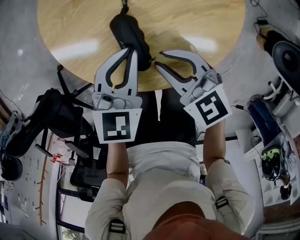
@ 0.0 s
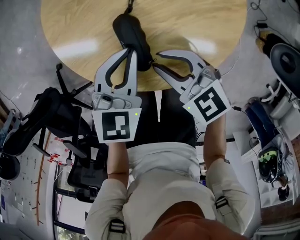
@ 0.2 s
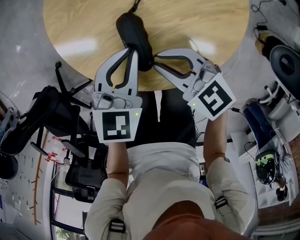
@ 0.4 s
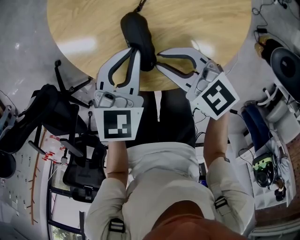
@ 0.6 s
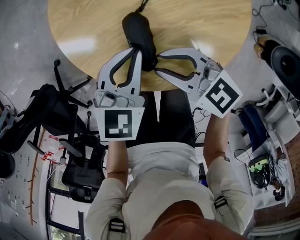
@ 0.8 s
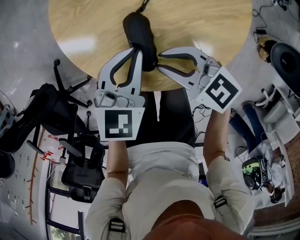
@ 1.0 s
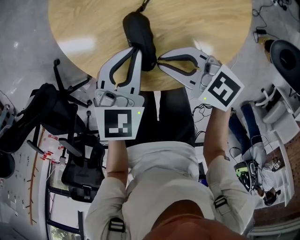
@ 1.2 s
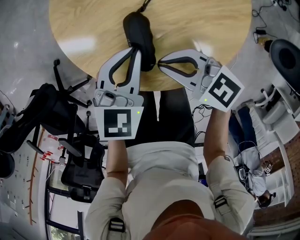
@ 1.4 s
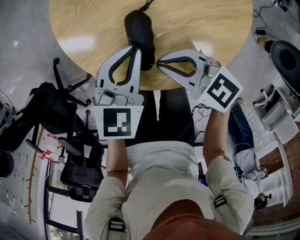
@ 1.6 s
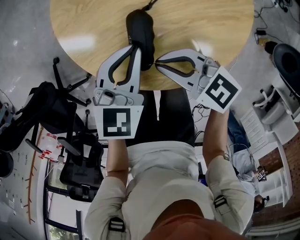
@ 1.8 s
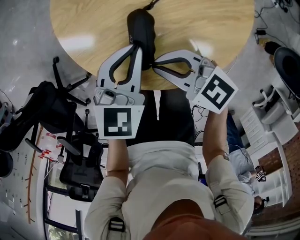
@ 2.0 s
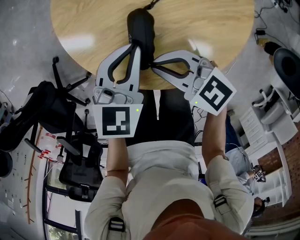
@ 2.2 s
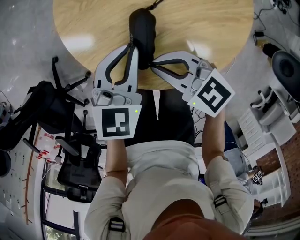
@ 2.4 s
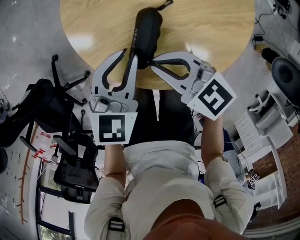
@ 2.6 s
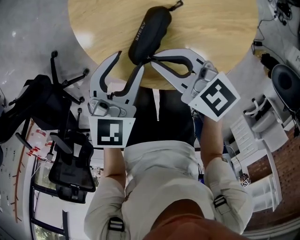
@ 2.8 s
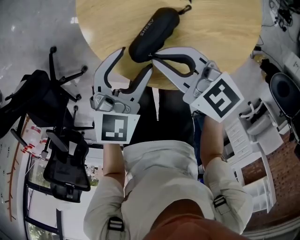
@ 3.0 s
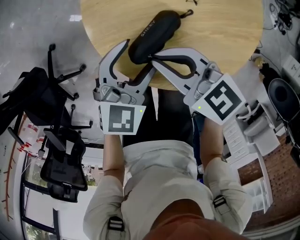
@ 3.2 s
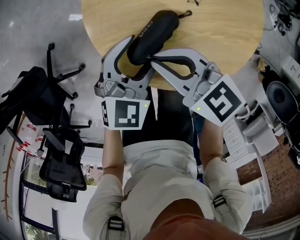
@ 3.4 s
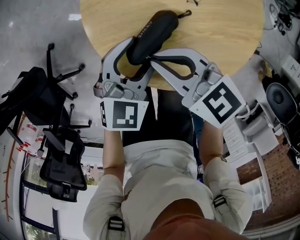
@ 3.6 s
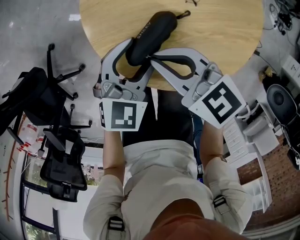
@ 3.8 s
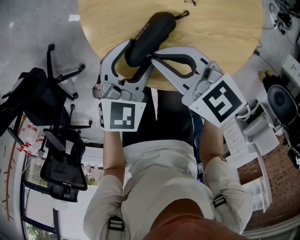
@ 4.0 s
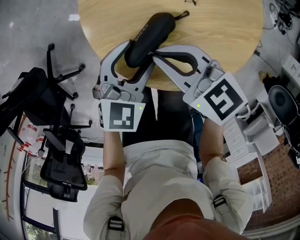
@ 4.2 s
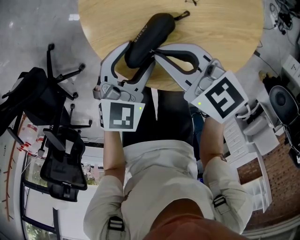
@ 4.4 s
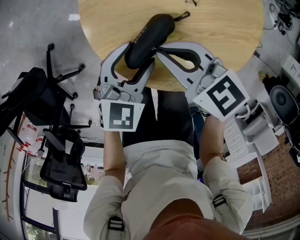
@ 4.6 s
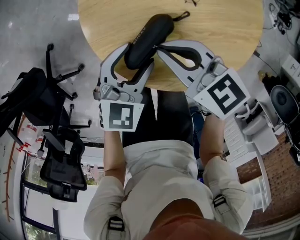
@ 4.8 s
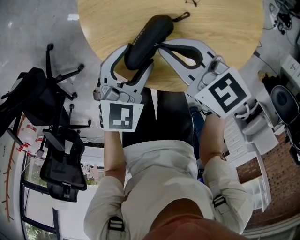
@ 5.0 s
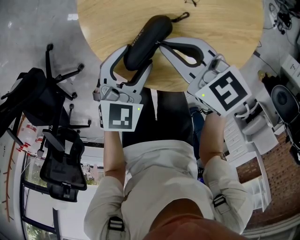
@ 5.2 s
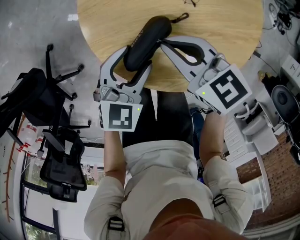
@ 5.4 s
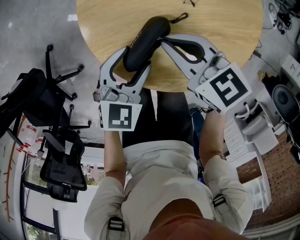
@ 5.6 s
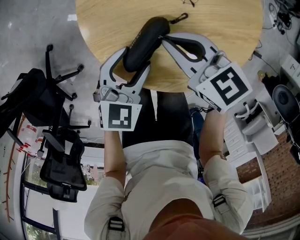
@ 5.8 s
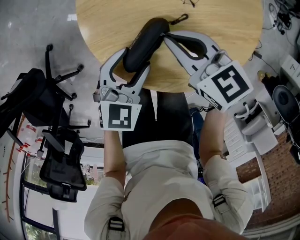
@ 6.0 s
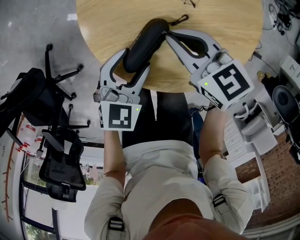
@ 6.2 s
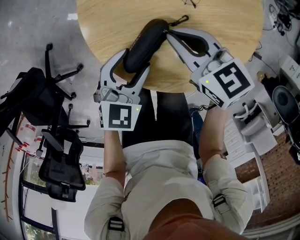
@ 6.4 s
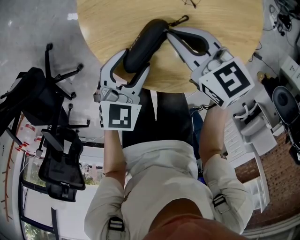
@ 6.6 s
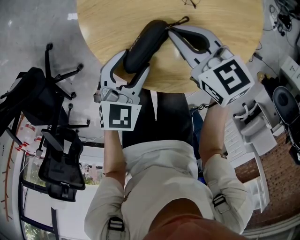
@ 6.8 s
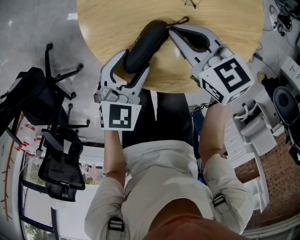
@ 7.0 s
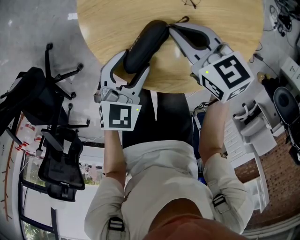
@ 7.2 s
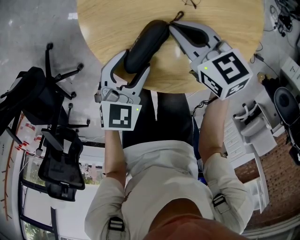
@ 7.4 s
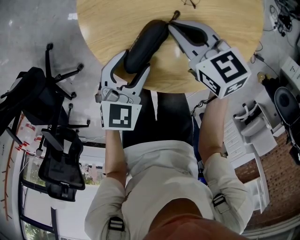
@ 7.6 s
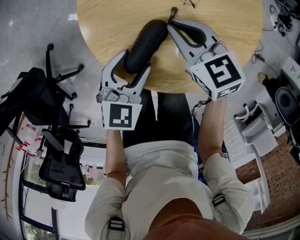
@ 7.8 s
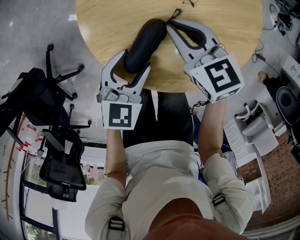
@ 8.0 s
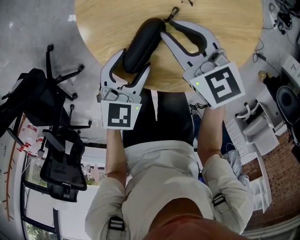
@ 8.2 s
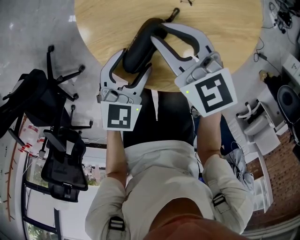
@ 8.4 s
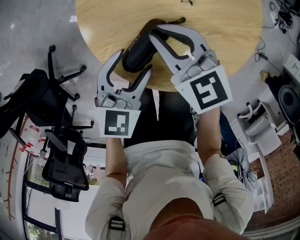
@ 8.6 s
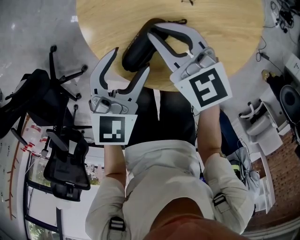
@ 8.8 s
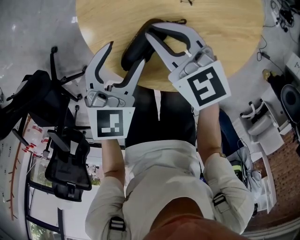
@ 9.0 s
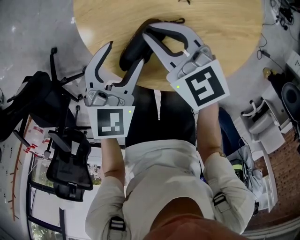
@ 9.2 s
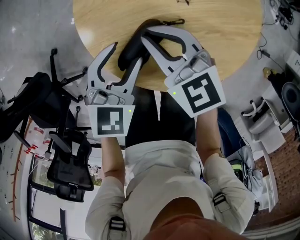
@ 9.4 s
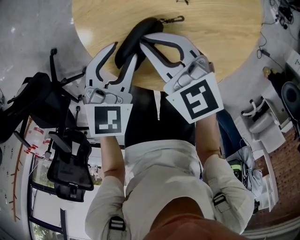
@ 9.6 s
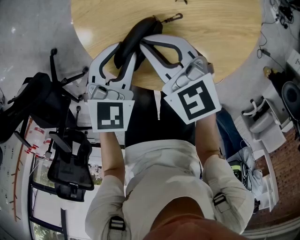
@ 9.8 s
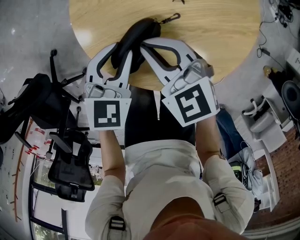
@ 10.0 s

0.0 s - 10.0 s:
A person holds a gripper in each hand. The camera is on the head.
0.0 s - 1.4 s: The right gripper turns by roughly 20 degrees.
1.4 s - 2.8 s: The left gripper is displaced to the left by approximately 5 cm, and opens up. Meanwhile the right gripper changes place by some 5 cm.
2.8 s - 4.2 s: The grippers move only a little.
4.2 s - 5.8 s: The right gripper moves some 5 cm.
5.8 s - 8.6 s: The grippers make only small movements.
8.6 s - 10.0 s: The left gripper closes.

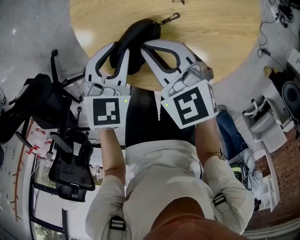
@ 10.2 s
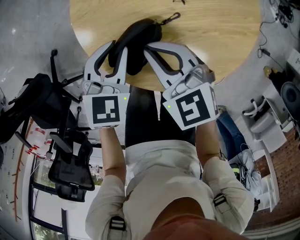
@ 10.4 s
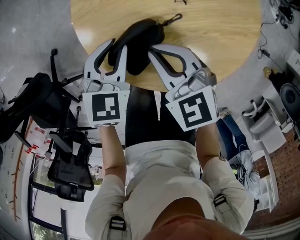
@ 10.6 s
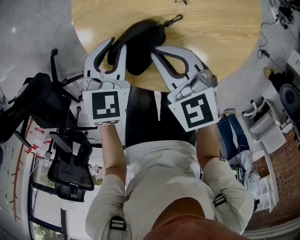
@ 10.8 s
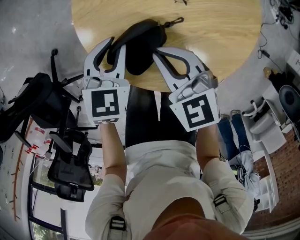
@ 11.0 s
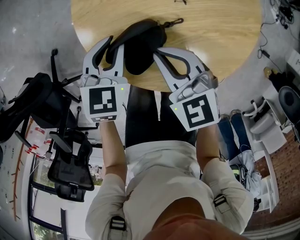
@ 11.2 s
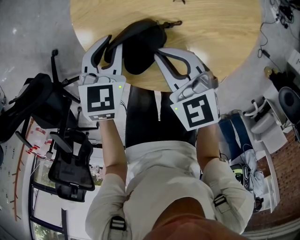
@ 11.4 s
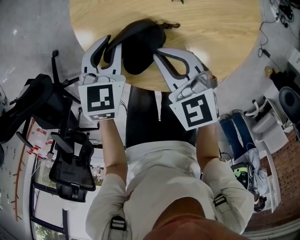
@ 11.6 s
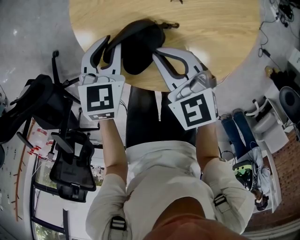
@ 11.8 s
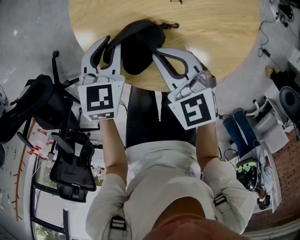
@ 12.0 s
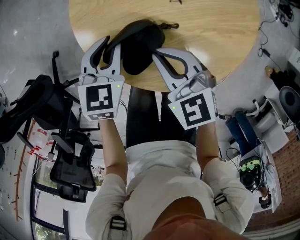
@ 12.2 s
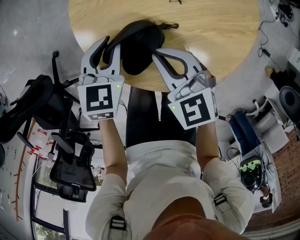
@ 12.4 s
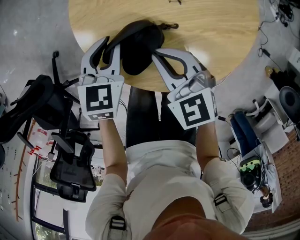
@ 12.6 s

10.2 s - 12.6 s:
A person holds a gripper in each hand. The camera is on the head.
10.2 s - 11.4 s: The grippers stay close to where they were, moving slightly.
11.4 s - 12.6 s: Both grippers stay about where they are.

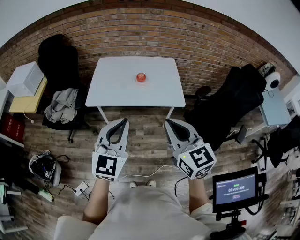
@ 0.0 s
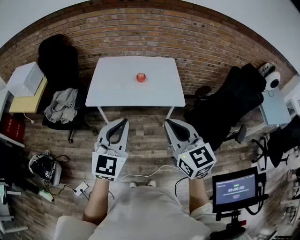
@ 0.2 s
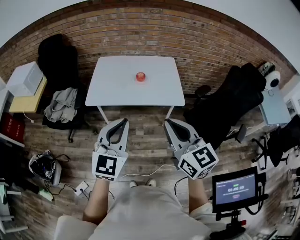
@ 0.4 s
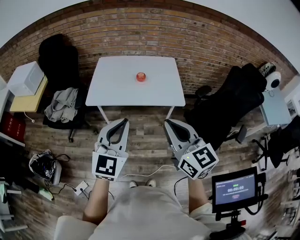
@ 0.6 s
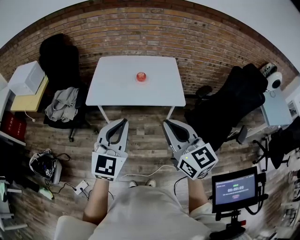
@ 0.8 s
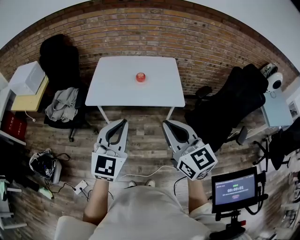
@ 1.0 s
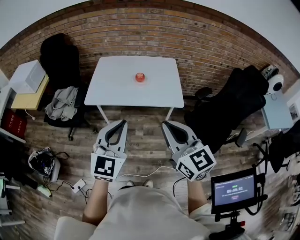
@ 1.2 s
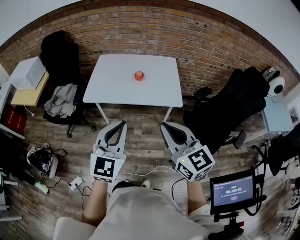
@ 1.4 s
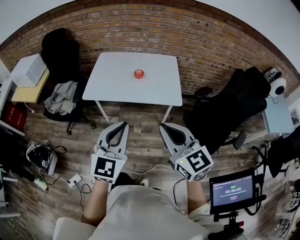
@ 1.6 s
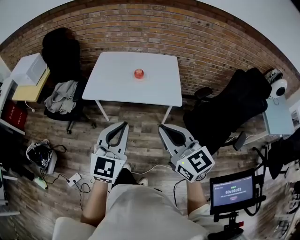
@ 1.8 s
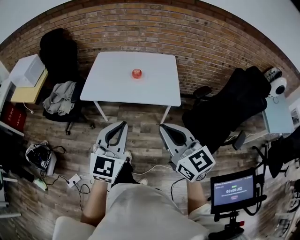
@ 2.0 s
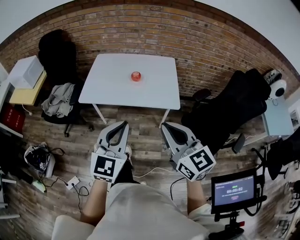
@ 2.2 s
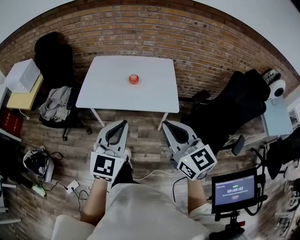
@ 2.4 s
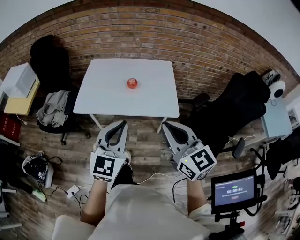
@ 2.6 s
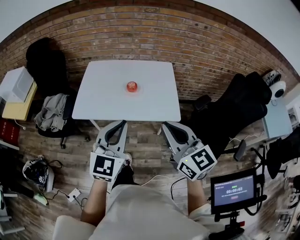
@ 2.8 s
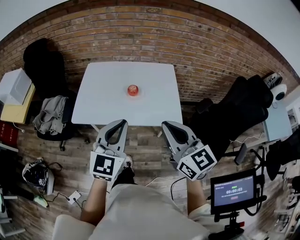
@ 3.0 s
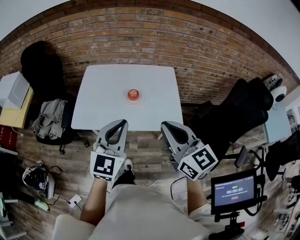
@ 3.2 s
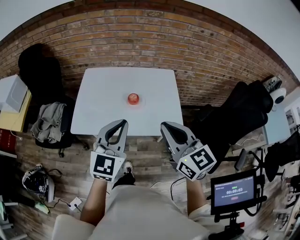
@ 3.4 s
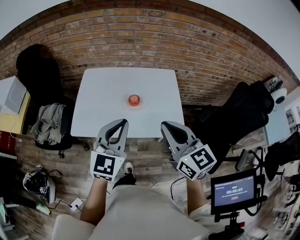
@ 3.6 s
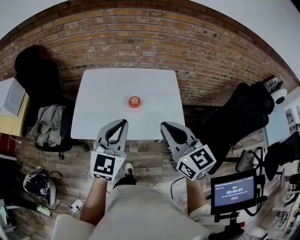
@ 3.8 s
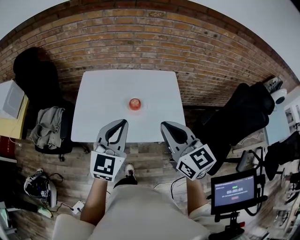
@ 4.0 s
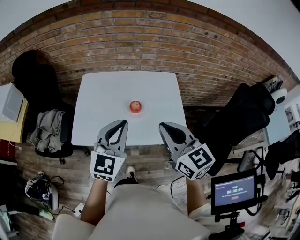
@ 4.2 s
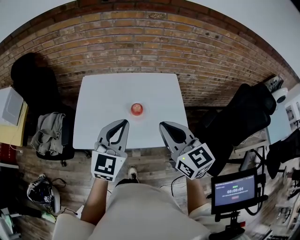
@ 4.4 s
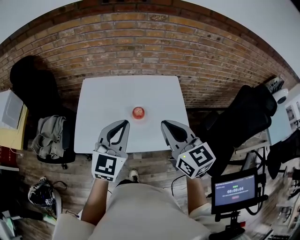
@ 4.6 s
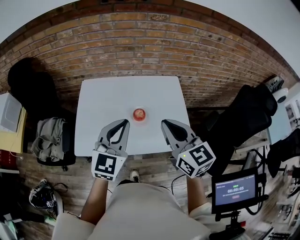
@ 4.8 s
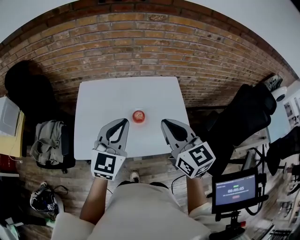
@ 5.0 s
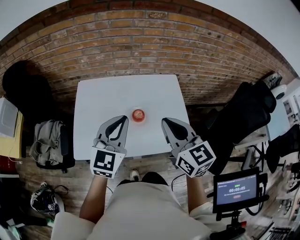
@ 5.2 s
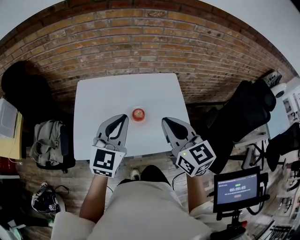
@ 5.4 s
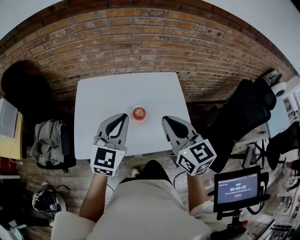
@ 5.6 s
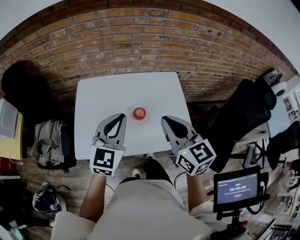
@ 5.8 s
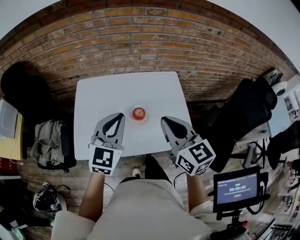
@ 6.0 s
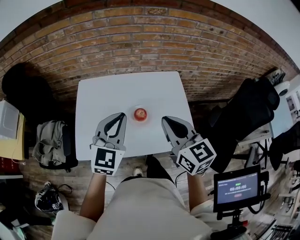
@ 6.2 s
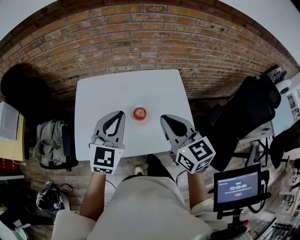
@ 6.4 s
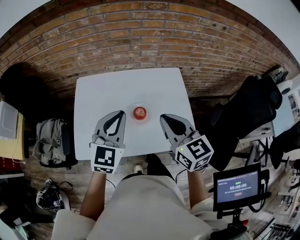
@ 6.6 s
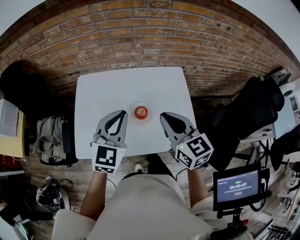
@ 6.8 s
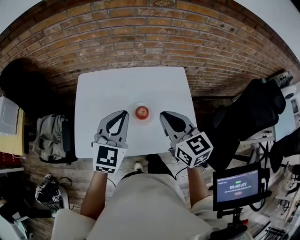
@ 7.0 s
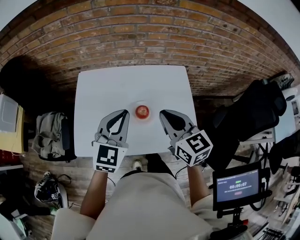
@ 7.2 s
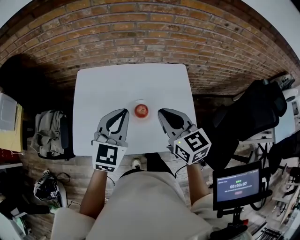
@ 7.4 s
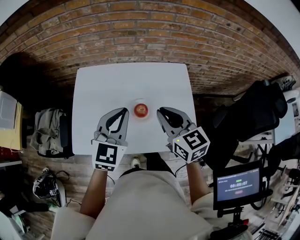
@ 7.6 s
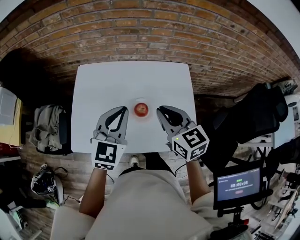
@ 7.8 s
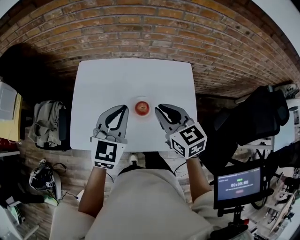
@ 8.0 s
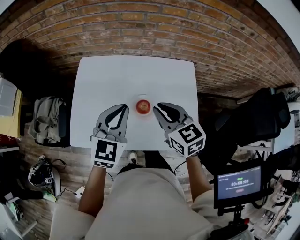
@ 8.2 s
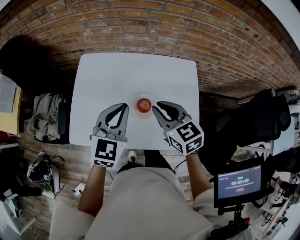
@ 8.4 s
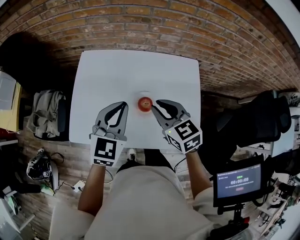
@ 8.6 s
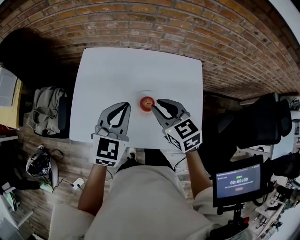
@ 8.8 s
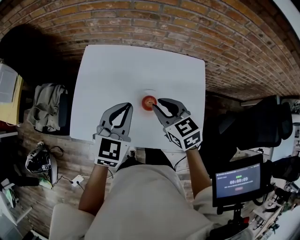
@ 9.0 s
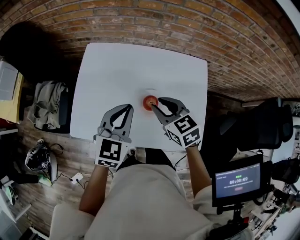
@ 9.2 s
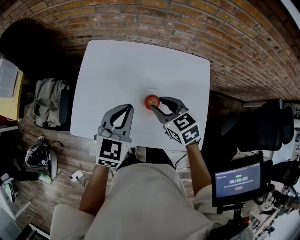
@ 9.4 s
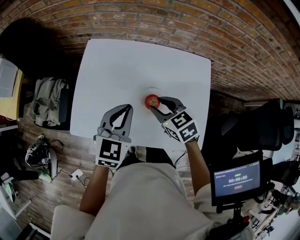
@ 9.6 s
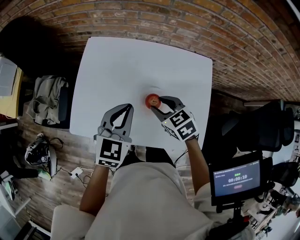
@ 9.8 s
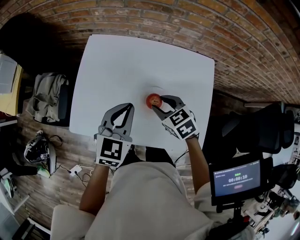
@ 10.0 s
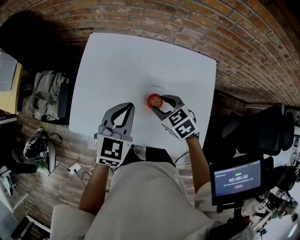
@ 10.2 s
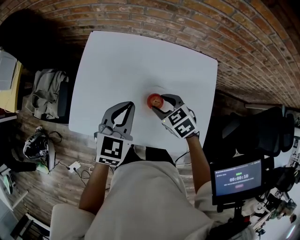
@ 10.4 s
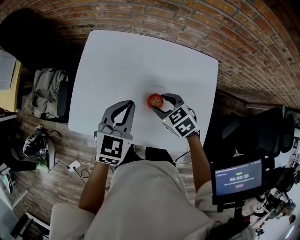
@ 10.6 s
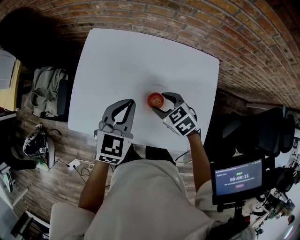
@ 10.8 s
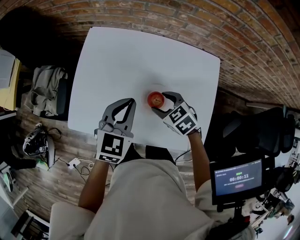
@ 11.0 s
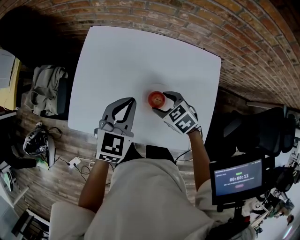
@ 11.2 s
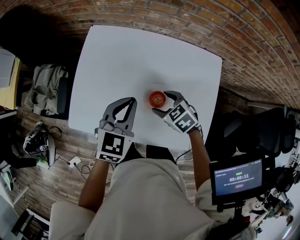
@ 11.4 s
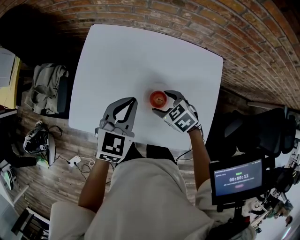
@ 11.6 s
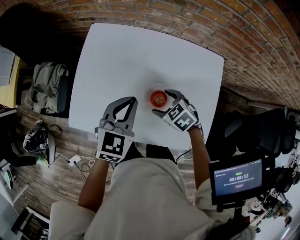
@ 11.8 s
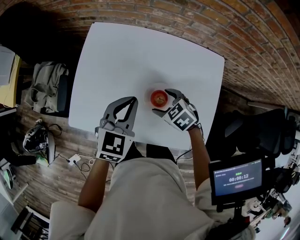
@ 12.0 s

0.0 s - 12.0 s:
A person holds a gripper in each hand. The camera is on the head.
0.0 s - 1.6 s: The left gripper is displaced to the right by about 5 cm, while the right gripper moves some 5 cm.
1.6 s - 3.0 s: Both grippers move forward, approximately 20 cm.
3.0 s - 4.4 s: Both grippers travel together forward, roughly 15 cm.
4.4 s - 6.0 s: The two grippers go approximately 10 cm forward.
6.0 s - 7.6 s: The left gripper ends up about 5 cm from where it was, while the right gripper shifts roughly 10 cm forward and downward.
7.6 s - 9.0 s: The right gripper shifts approximately 10 cm downward and forward, and turns by about 20 degrees, while the left gripper heads downward, covering roughly 5 cm.
9.0 s - 10.4 s: The right gripper is displaced downward by some 10 cm, and changes its angle by about 20 degrees.
10.4 s - 12.0 s: The right gripper travels downward by roughly 5 cm, and opens up.
